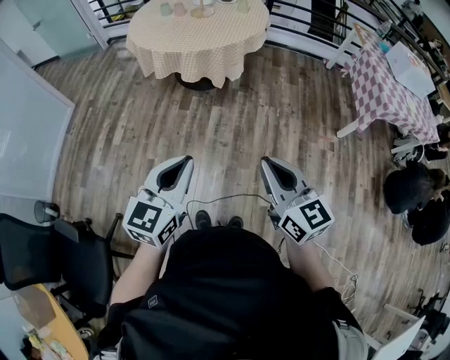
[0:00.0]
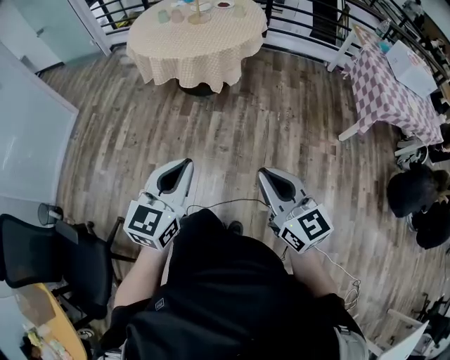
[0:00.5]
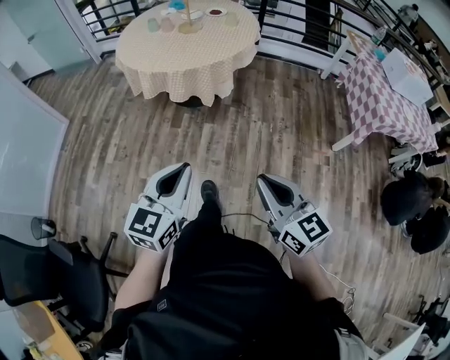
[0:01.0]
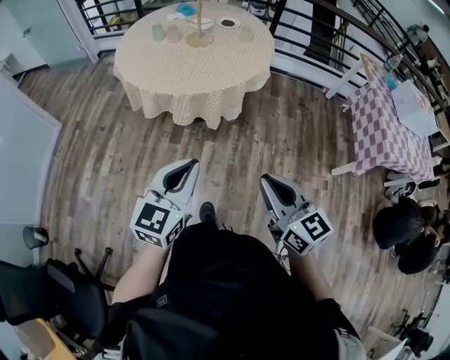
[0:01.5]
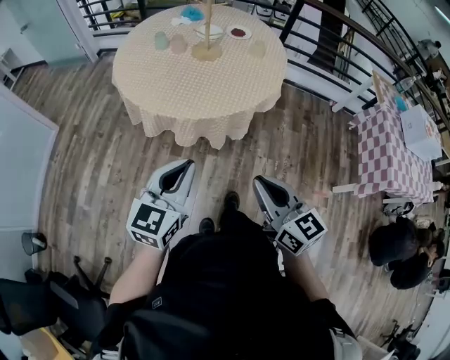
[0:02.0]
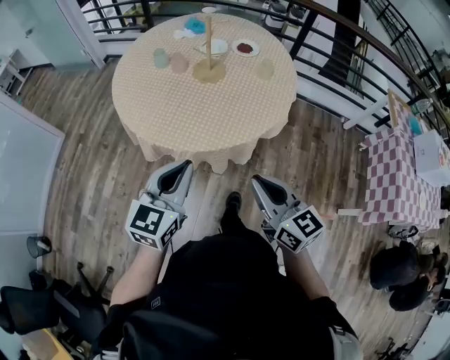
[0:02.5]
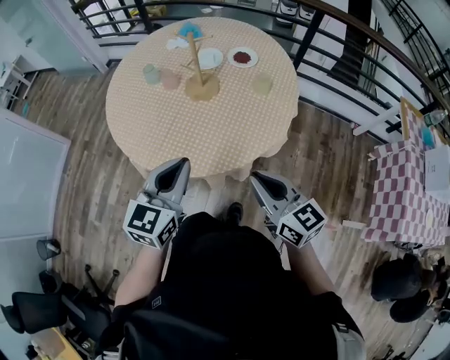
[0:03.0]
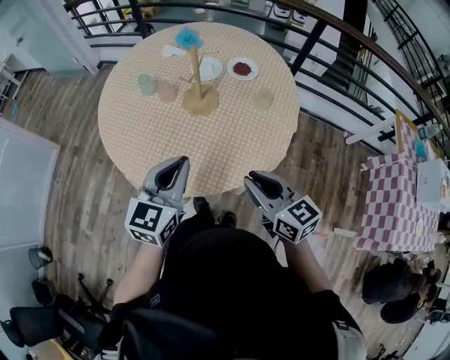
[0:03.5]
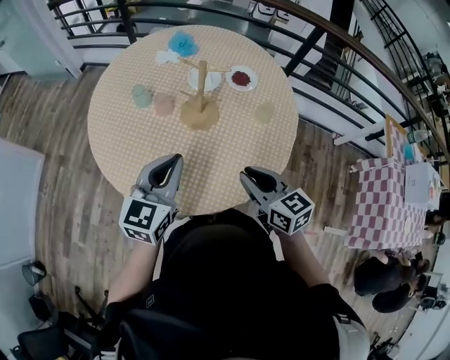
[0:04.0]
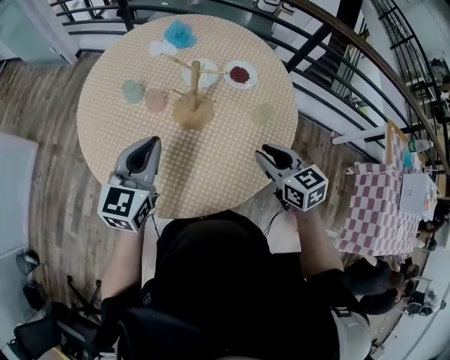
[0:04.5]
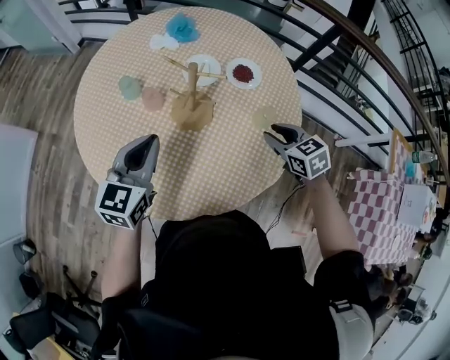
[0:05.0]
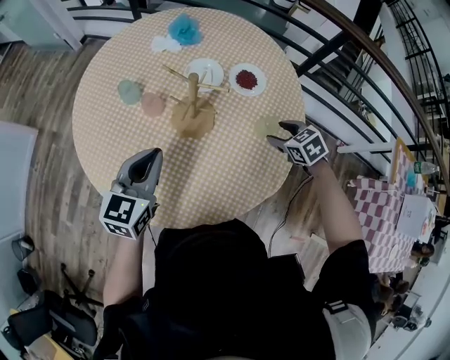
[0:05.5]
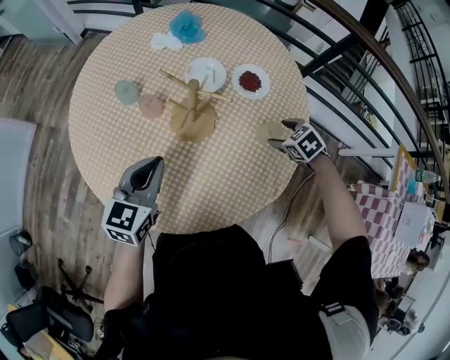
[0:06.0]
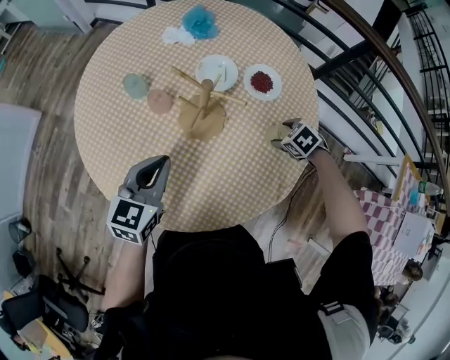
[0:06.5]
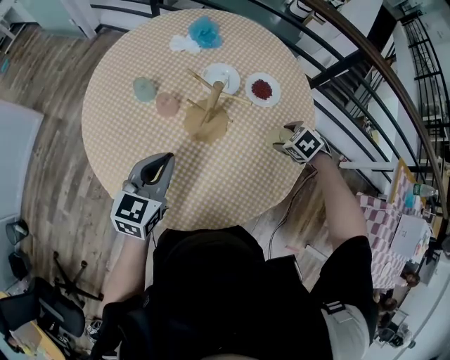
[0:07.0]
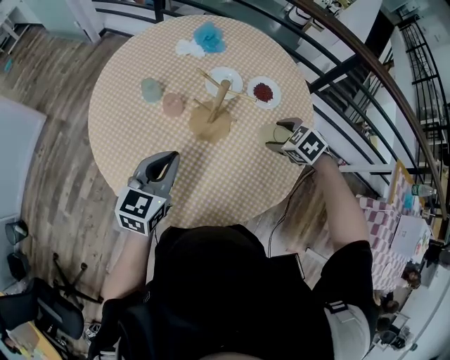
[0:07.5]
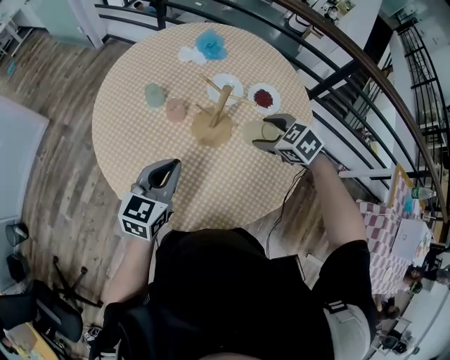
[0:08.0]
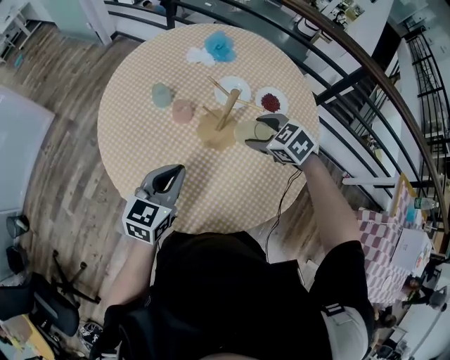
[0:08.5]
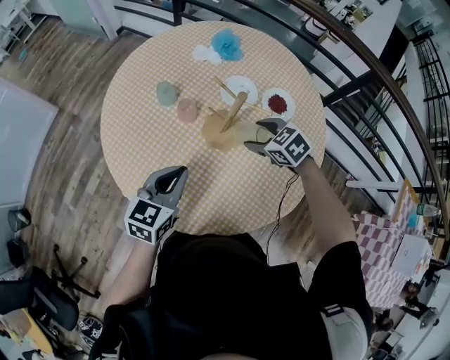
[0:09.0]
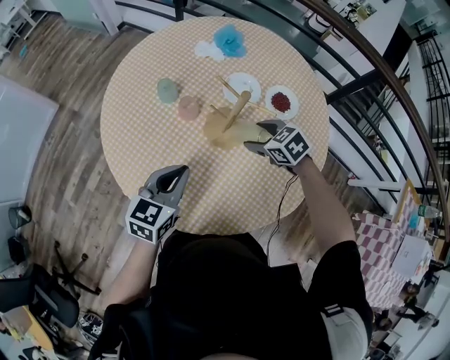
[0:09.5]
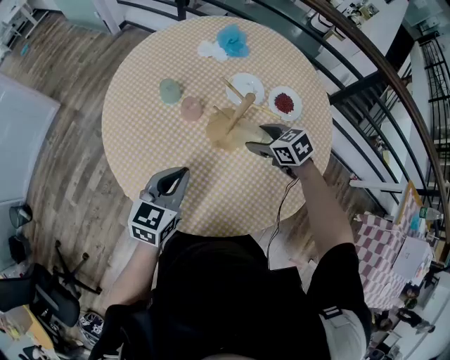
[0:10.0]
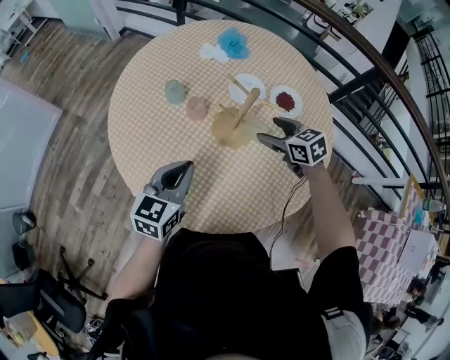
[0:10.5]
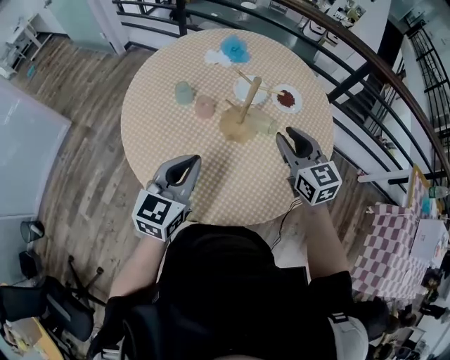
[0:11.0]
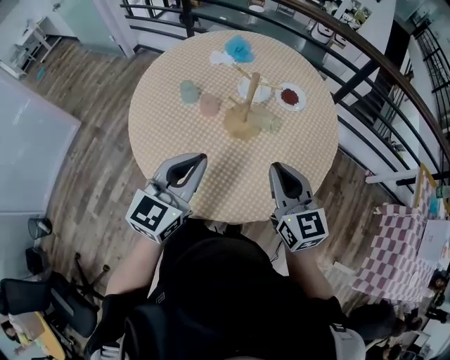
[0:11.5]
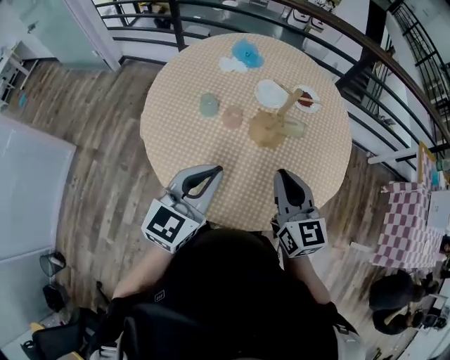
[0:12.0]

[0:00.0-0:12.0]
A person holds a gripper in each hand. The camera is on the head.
0:00.0 to 0:02.0: The pair of grippers is taken forward, about 40 cm.
0:02.0 to 0:04.0: The two grippers travel together, forward, approximately 50 cm.
0:04.0 to 0:06.0: The right gripper goes approximately 35 cm forward, to the right and downward, tips its fingers downward by some 50 degrees, and opens; the left gripper travels forward and downward by some 15 cm.
0:06.0 to 0:08.0: The left gripper moves about 5 cm, while the right gripper shifts by some 20 cm.
0:08.0 to 0:10.0: The right gripper heads downward, covering some 10 cm.
0:10.0 to 0:12.0: The left gripper moves upward, about 15 cm, and changes its angle by some 30 degrees; the right gripper ends up roughly 30 cm from where it was, points its fingers roughly 40 degrees further upward, and closes up.

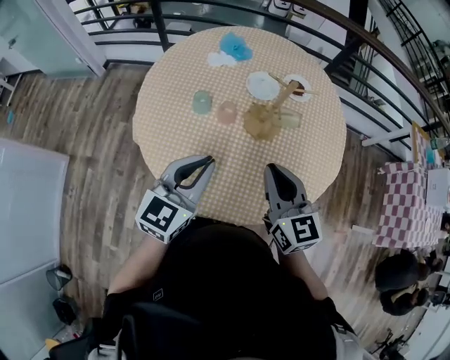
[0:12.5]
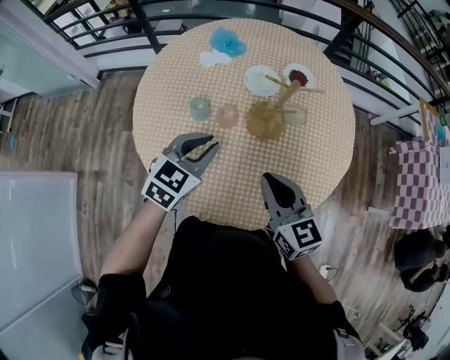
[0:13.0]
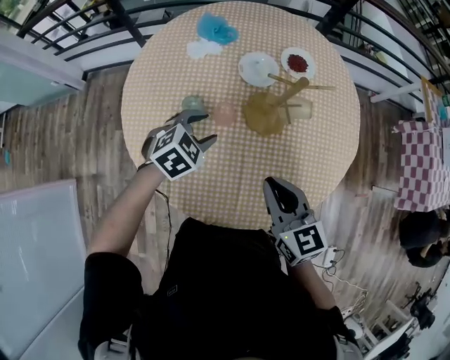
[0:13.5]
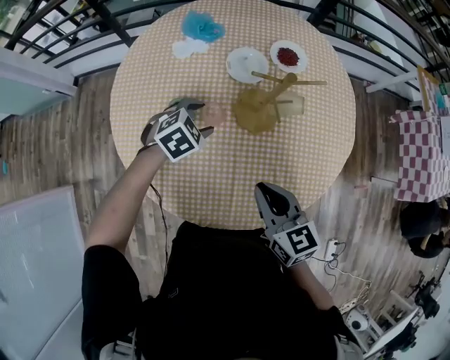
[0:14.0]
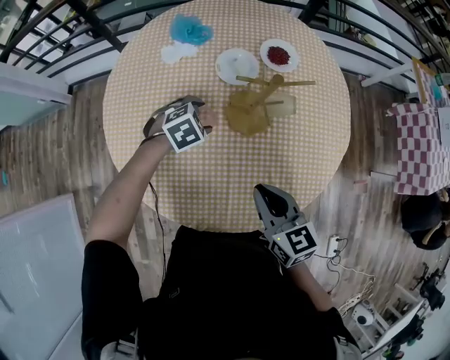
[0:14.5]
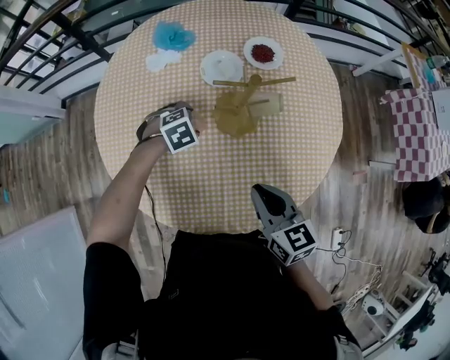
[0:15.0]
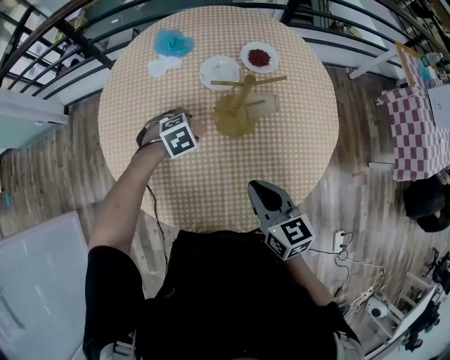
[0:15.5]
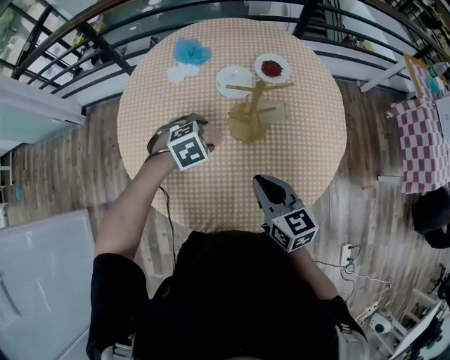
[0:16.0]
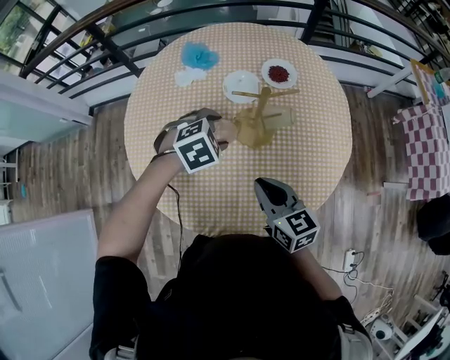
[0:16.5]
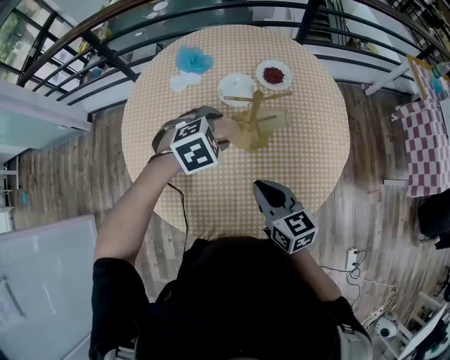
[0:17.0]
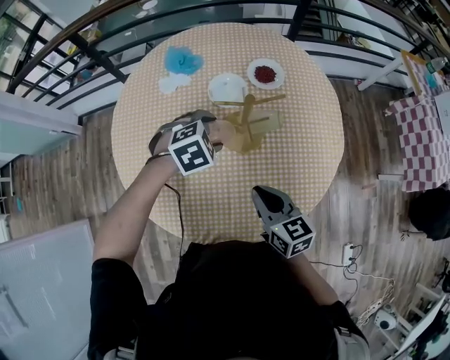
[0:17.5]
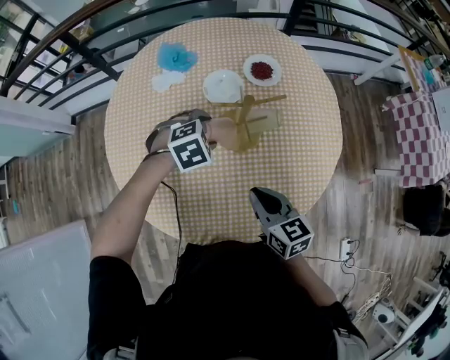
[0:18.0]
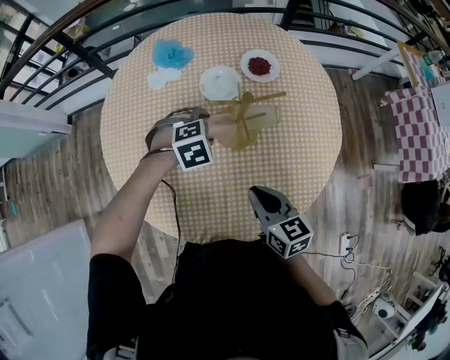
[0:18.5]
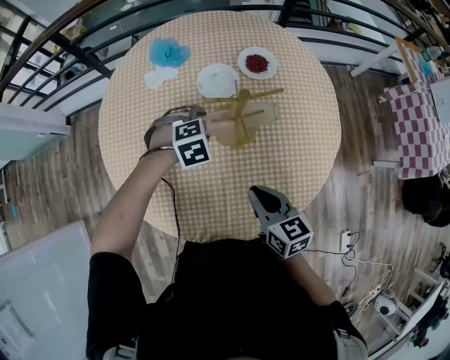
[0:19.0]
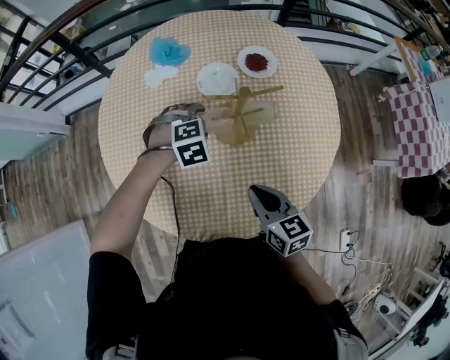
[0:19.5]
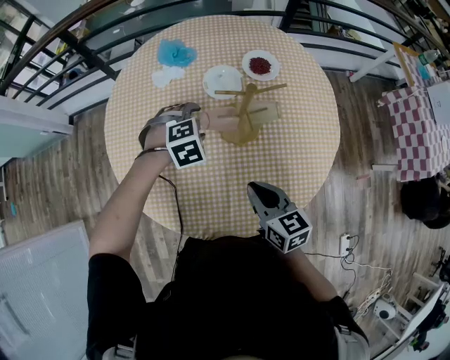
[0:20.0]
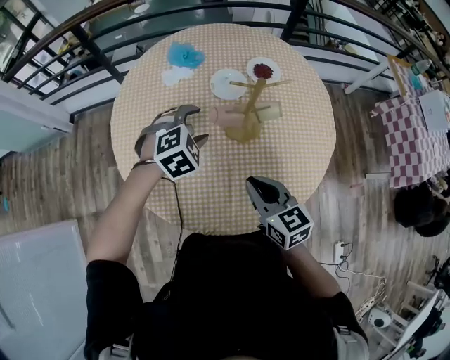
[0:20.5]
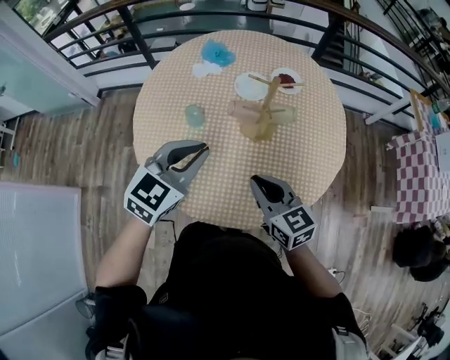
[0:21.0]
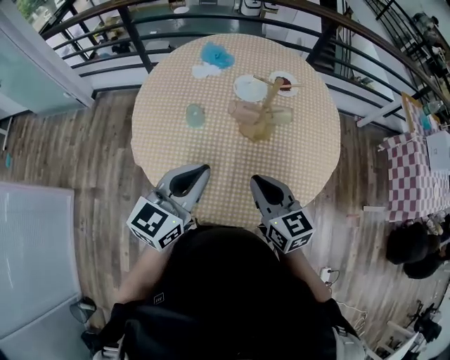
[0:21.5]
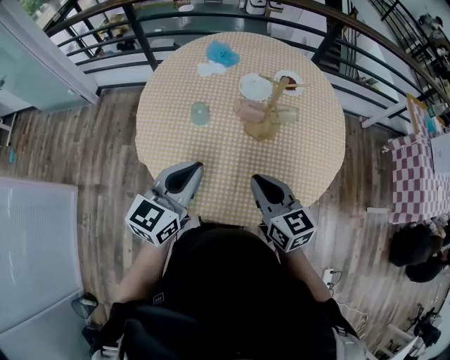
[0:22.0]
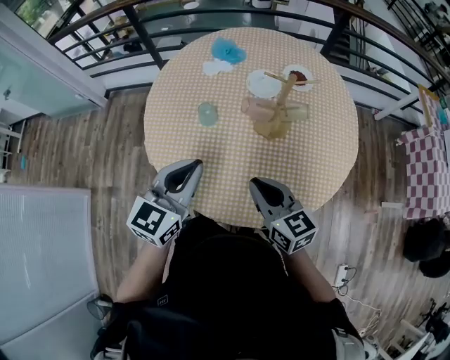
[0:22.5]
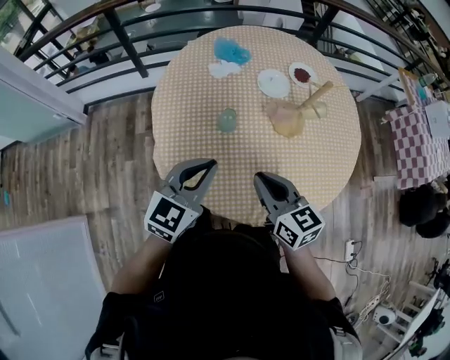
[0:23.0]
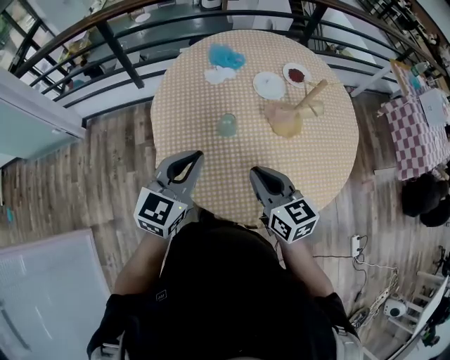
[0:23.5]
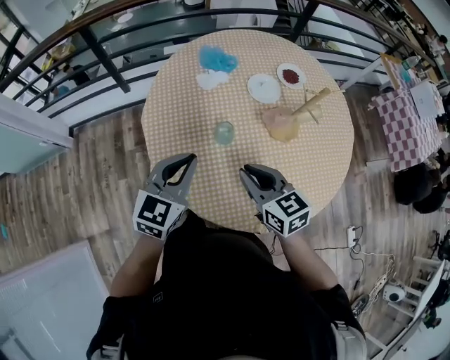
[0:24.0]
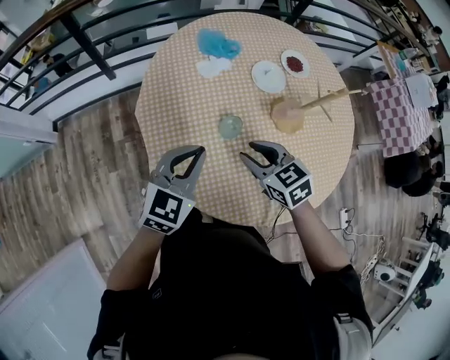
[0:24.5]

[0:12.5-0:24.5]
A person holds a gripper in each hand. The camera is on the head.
0:12.5 to 0:14.5: The left gripper goes approximately 35 cm downward and forward, points its fingers about 50 degrees further downward, and opens. The right gripper is displaced downward by about 10 cm, and swivels about 20 degrees.
0:14.5 to 0:16.5: The left gripper shifts some 10 cm upward.
0:16.5 to 0:18.5: The left gripper goes roughly 5 cm downward. Meanwhile the right gripper ends up about 5 cm from where it was.
0:18.5 to 0:20.5: The right gripper heads upward, covering roughly 5 cm. The left gripper shifts roughly 10 cm upward, to the left and backward.
0:20.5 to 0:22.5: The left gripper travels backward, upward and to the left by some 20 cm, points its fingers approximately 40 degrees further upward, and closes its fingers; the right gripper changes place by approximately 5 cm.
0:22.5 to 0:24.5: The two grippers go roughly 25 cm to the left and forward. The right gripper changes its angle by approximately 30 degrees; the left gripper turns by roughly 30 degrees.

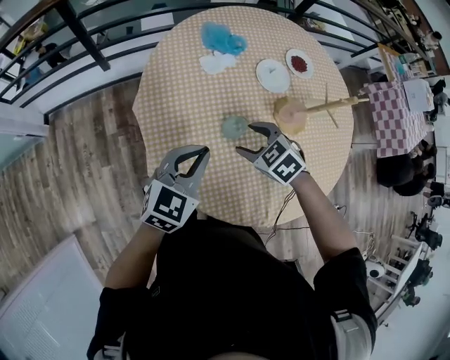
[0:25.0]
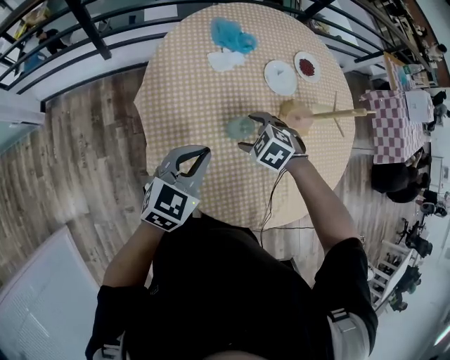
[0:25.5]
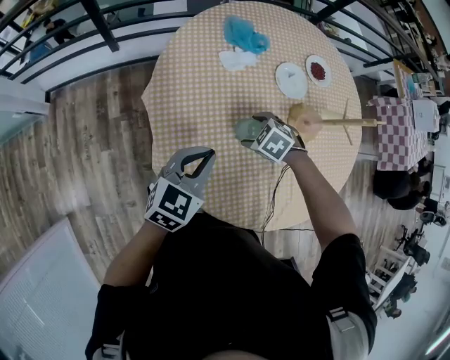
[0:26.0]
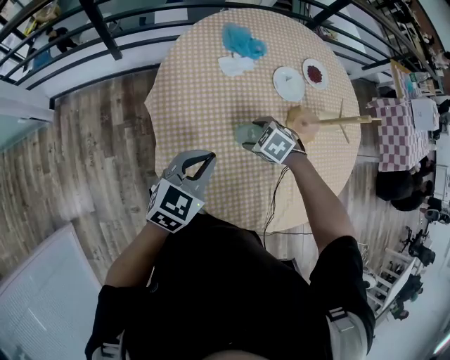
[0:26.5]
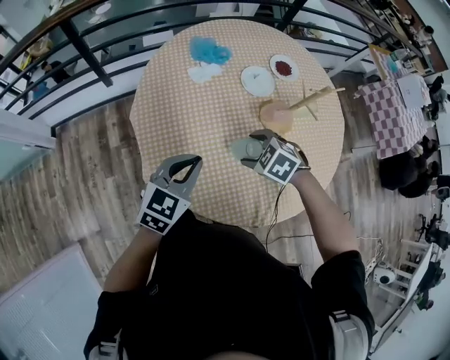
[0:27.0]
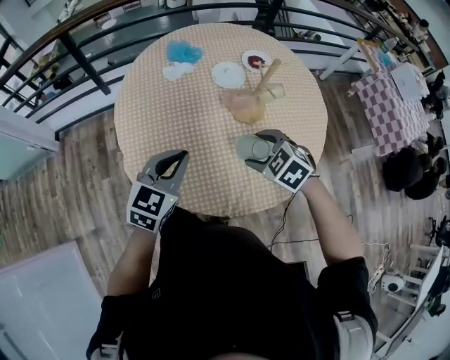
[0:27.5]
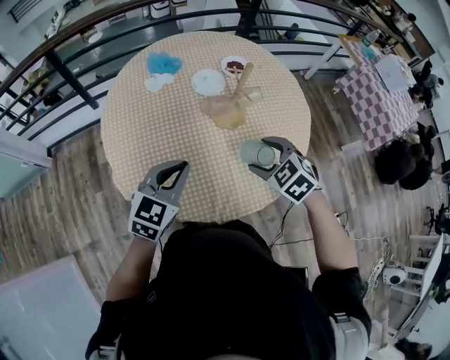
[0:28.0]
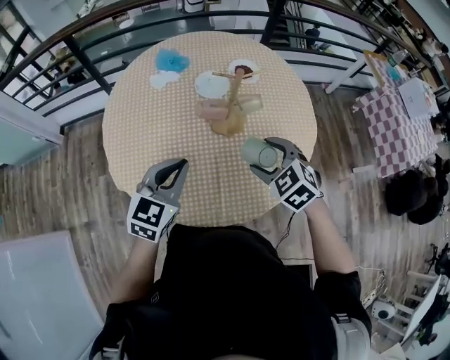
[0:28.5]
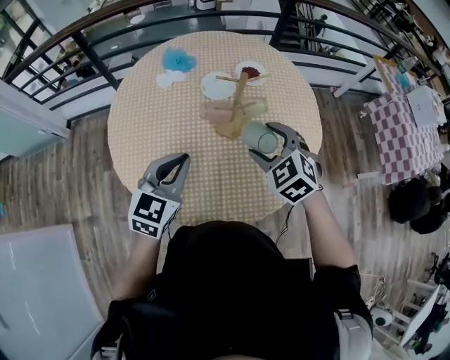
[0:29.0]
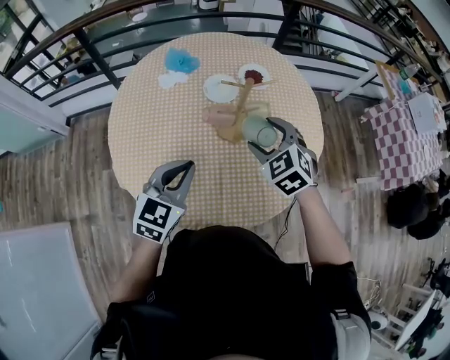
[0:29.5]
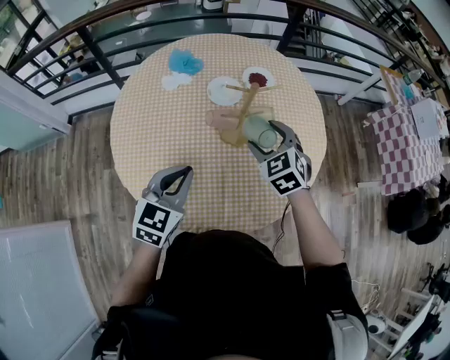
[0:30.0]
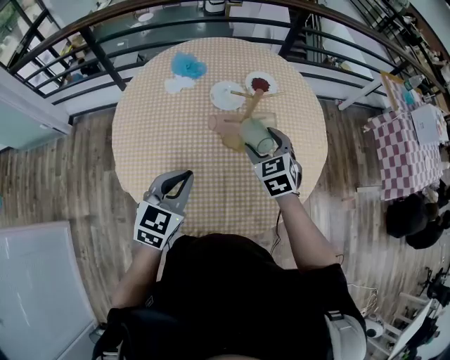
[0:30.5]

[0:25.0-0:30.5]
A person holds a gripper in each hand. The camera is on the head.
0:25.0 to 0:27.0: The left gripper moves about 5 cm; the right gripper goes downward and returns, roughly 10 cm each way.
0:27.0 to 0:28.5: The two grippers go approximately 25 cm to the right. The right gripper changes its angle by roughly 20 degrees.
0:28.5 to 0:30.5: The right gripper shifts roughly 10 cm forward.
